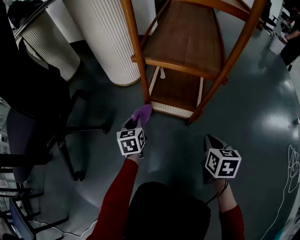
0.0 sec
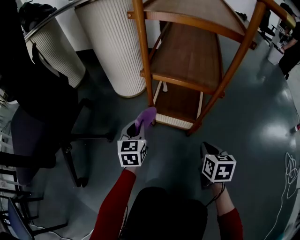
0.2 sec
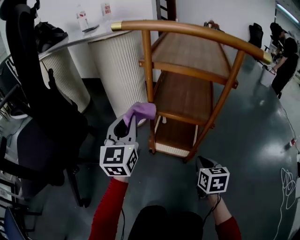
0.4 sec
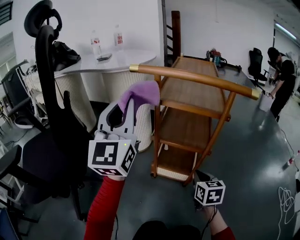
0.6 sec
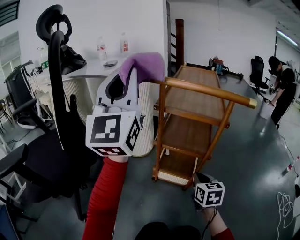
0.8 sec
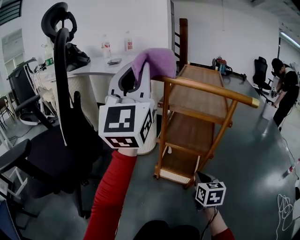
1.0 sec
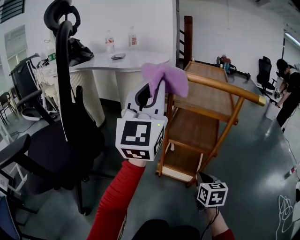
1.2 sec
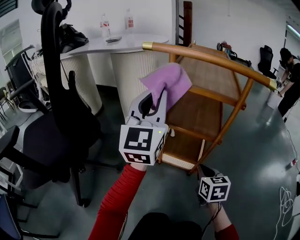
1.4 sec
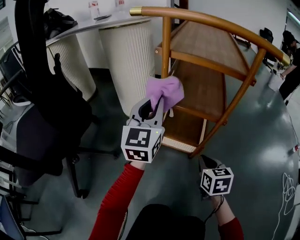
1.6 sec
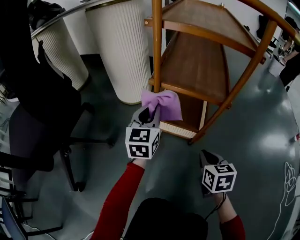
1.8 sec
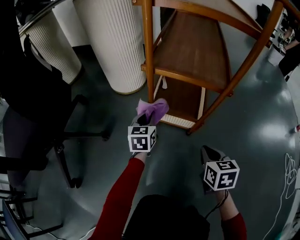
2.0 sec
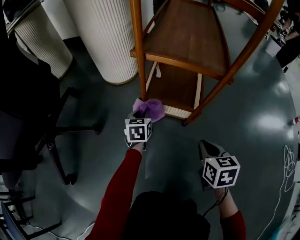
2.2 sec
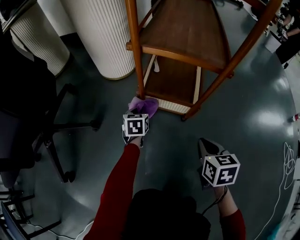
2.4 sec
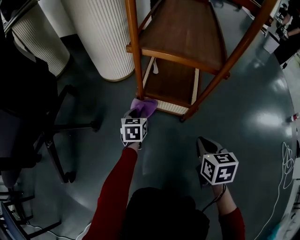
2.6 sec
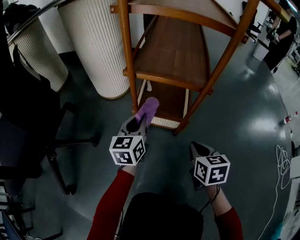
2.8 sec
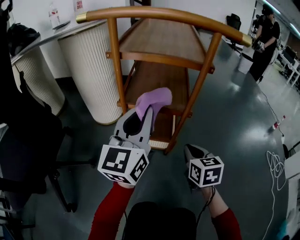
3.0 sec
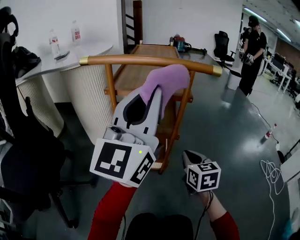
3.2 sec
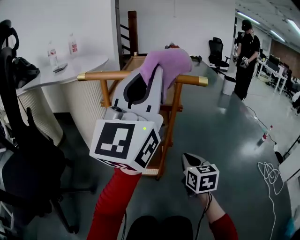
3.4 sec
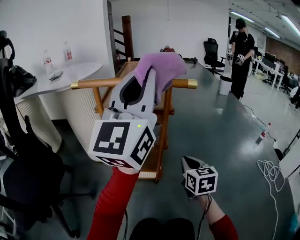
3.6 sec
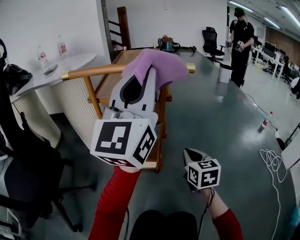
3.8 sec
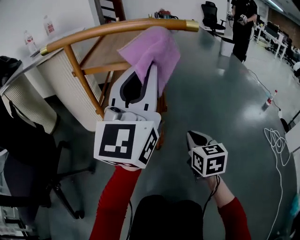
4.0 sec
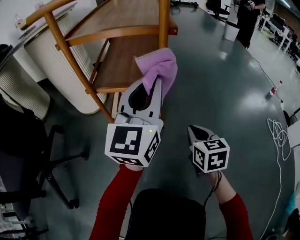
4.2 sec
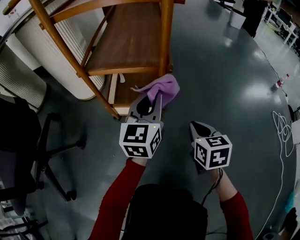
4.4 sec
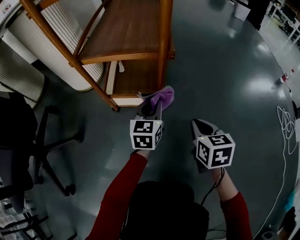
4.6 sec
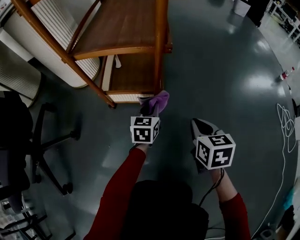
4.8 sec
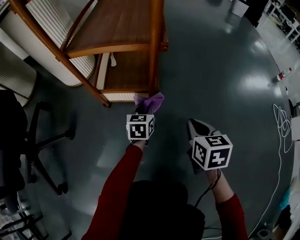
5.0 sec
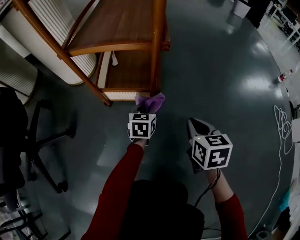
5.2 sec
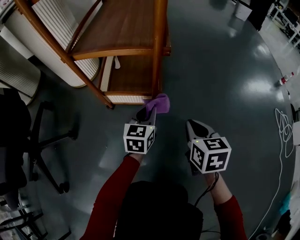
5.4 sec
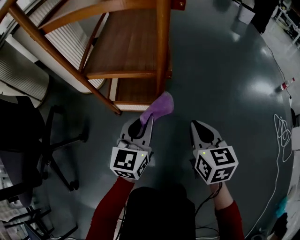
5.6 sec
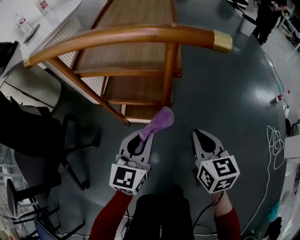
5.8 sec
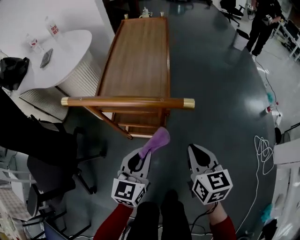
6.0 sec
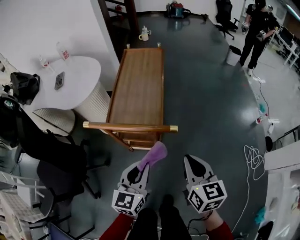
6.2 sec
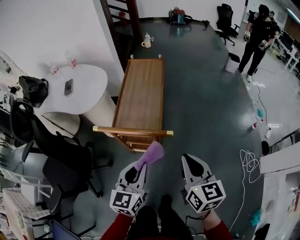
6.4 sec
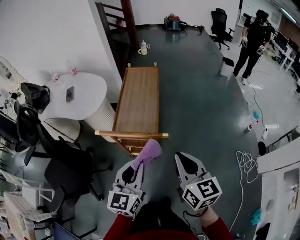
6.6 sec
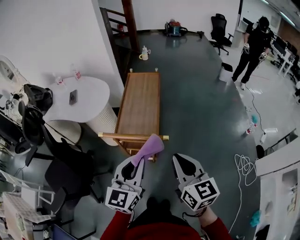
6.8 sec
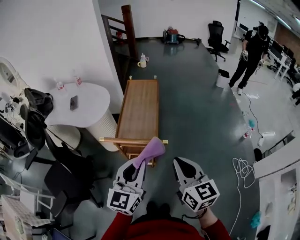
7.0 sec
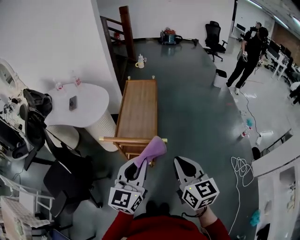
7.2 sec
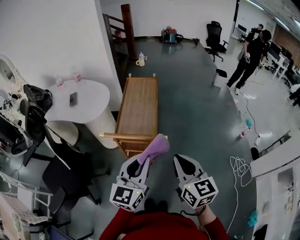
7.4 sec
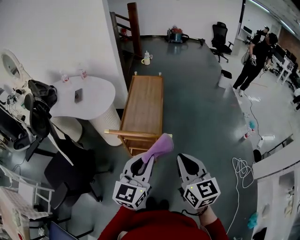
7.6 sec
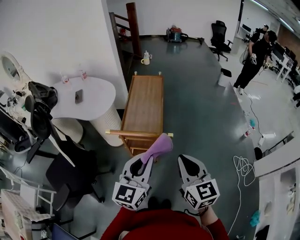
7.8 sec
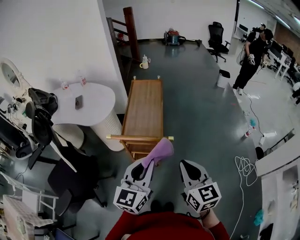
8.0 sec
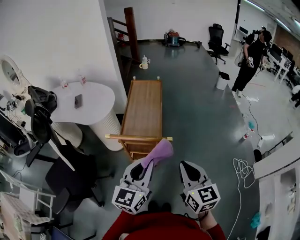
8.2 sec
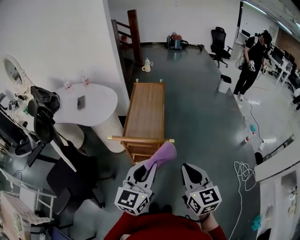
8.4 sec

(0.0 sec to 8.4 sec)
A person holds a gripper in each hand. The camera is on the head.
0.0 sec - 1.4 sec: The right gripper moves upward and to the left, about 15 cm, while the left gripper heads upward, covering roughly 50 cm, and angles its fingers upward, by roughly 50 degrees.
1.4 sec - 2.8 sec: The left gripper is displaced downward by approximately 35 cm, and tips its fingers downward by approximately 30 degrees. The right gripper is displaced downward by roughly 10 cm.
2.8 sec - 4.2 sec: The right gripper heads to the right, covering about 10 cm, and moves some 20 cm upward and comes back; the left gripper shifts about 30 cm upward and to the right, and changes its angle by approximately 30 degrees.
4.2 sec - 5.6 sec: The left gripper shifts approximately 20 cm downward, and swivels about 20 degrees; the right gripper goes downward and returns, roughly 10 cm each way.
5.6 sec - 7.0 sec: Both grippers move upward, roughly 60 cm. The right gripper changes its angle by about 20 degrees.
7.0 sec - 8.4 sec: The grippers move only a little.

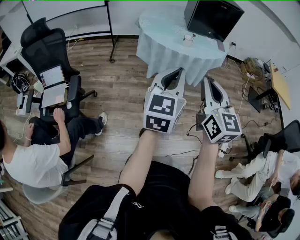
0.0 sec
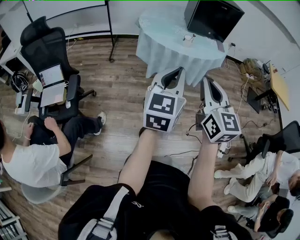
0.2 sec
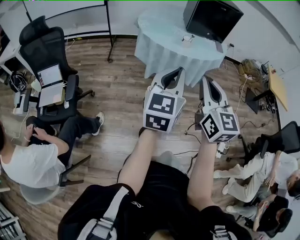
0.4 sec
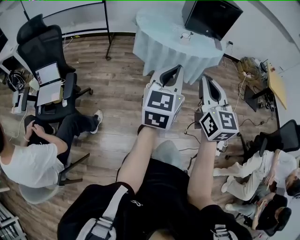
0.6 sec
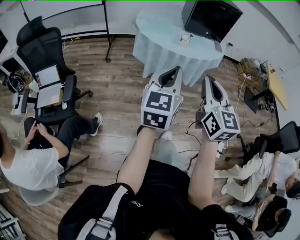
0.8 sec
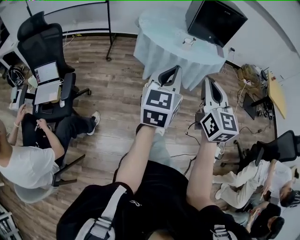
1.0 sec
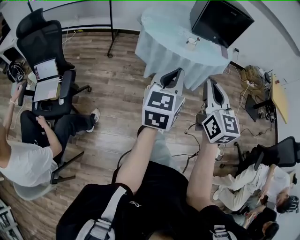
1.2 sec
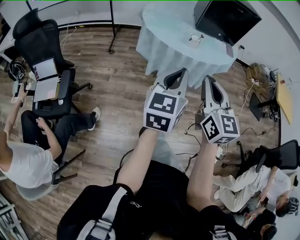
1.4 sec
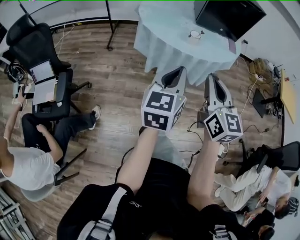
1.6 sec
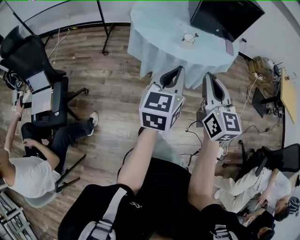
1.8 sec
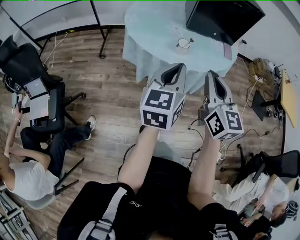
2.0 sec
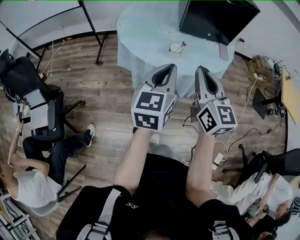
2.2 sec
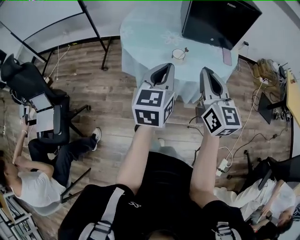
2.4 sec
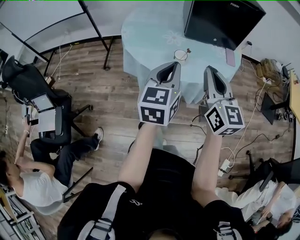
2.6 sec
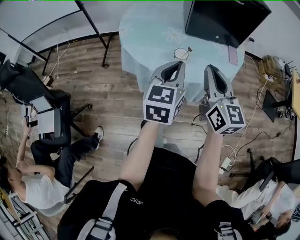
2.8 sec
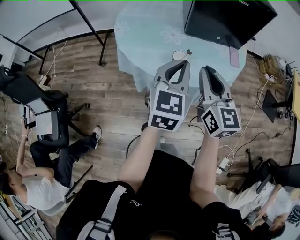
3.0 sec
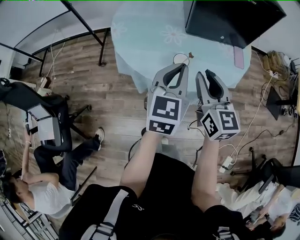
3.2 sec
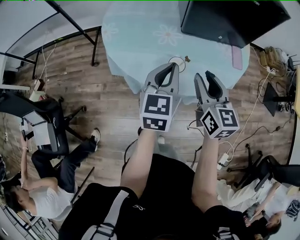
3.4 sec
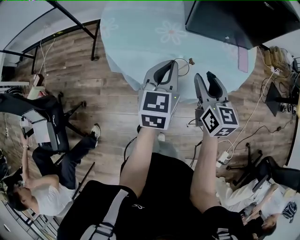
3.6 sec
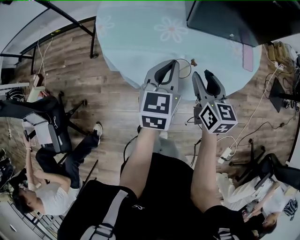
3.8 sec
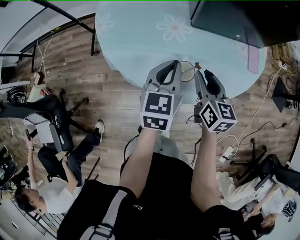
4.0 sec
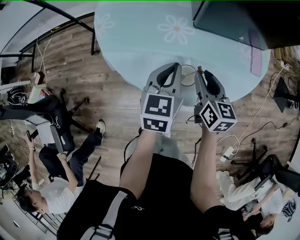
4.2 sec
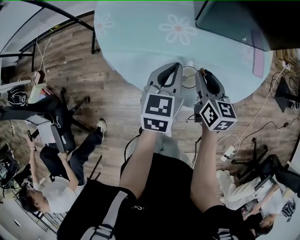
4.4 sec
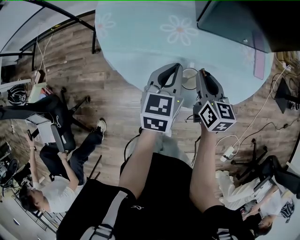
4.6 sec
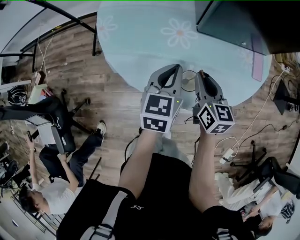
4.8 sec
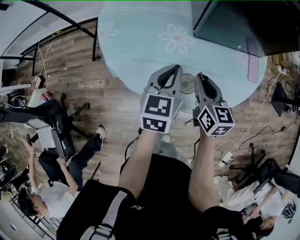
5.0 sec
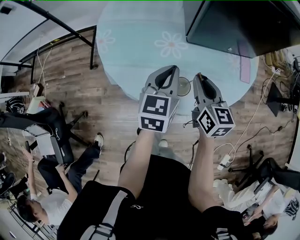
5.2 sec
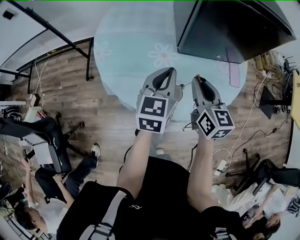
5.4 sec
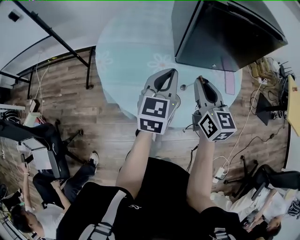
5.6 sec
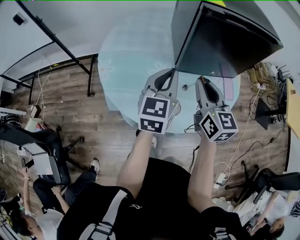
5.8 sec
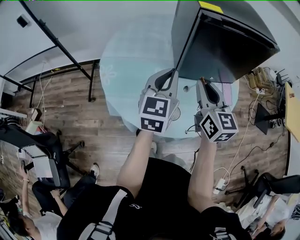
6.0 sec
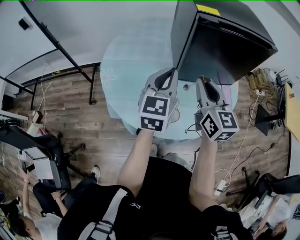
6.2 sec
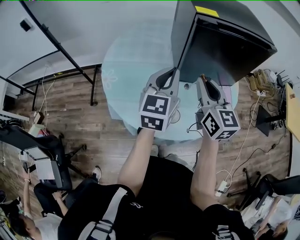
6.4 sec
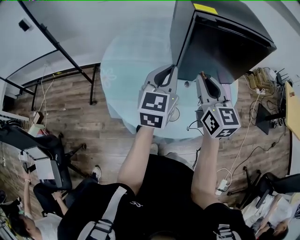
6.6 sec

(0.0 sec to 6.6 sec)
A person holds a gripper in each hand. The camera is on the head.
0.0 sec - 1.6 sec: Both grippers move forward, approximately 15 cm.
1.6 sec - 3.2 sec: Both grippers move forward, approximately 35 cm. The right gripper opens up.
3.2 sec - 5.0 sec: The two grippers go approximately 20 cm forward and downward.
5.0 sec - 6.6 sec: The grippers both shift upward by some 20 cm. The left gripper rotates approximately 20 degrees; the right gripper swivels about 20 degrees.

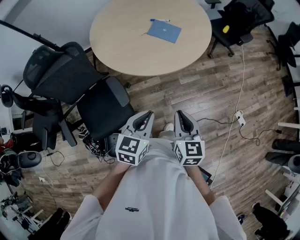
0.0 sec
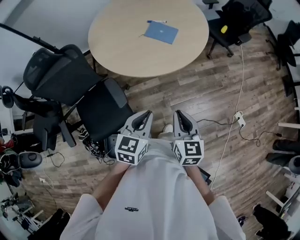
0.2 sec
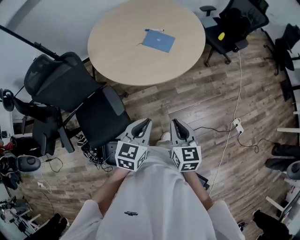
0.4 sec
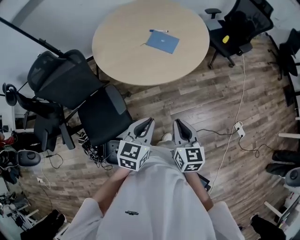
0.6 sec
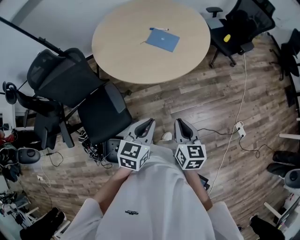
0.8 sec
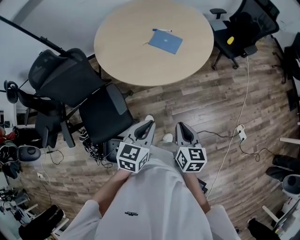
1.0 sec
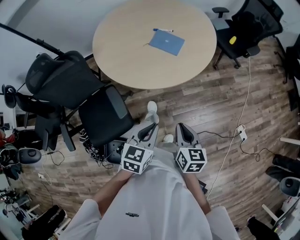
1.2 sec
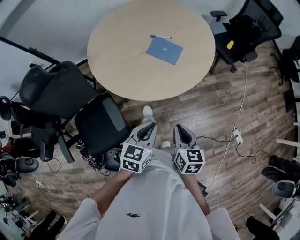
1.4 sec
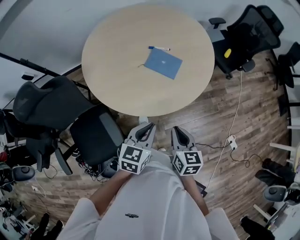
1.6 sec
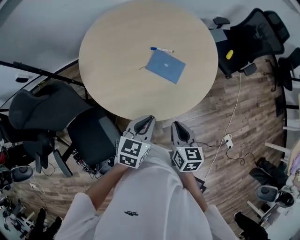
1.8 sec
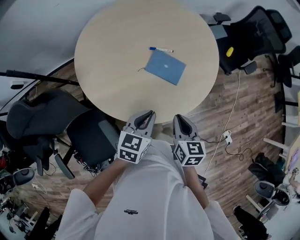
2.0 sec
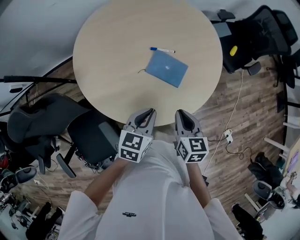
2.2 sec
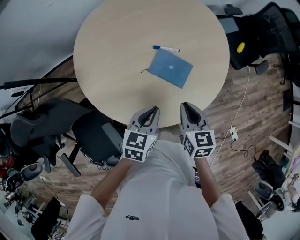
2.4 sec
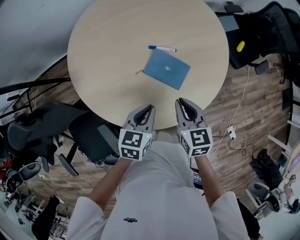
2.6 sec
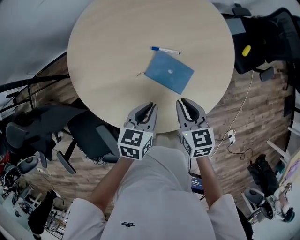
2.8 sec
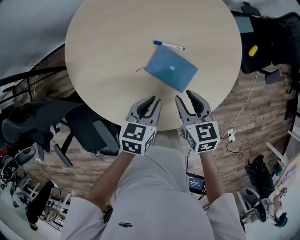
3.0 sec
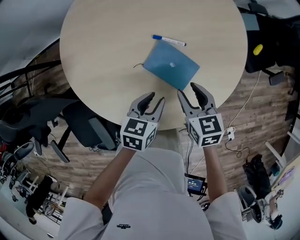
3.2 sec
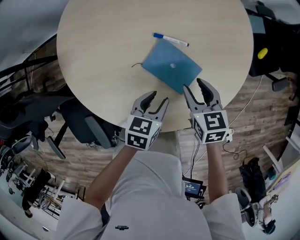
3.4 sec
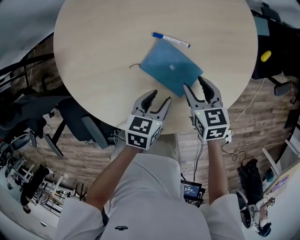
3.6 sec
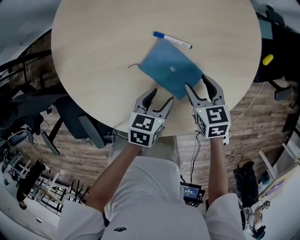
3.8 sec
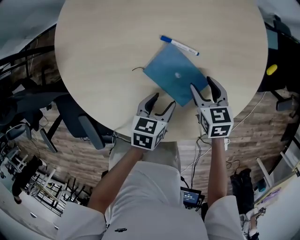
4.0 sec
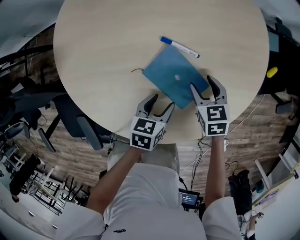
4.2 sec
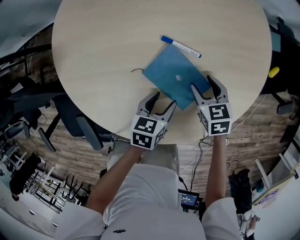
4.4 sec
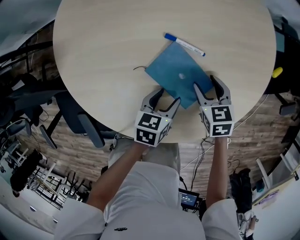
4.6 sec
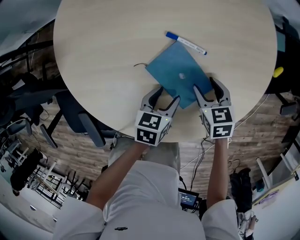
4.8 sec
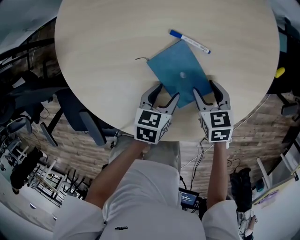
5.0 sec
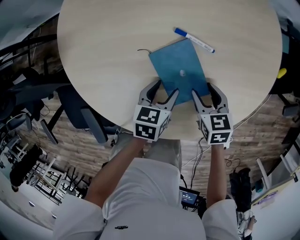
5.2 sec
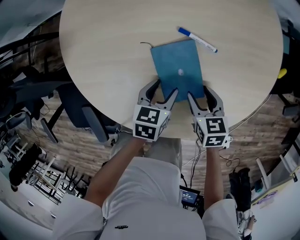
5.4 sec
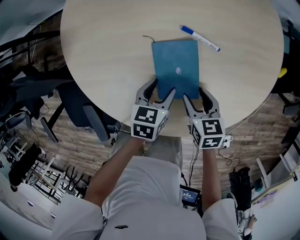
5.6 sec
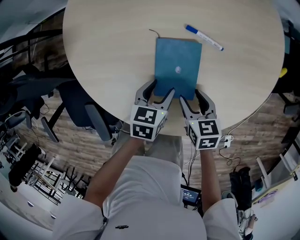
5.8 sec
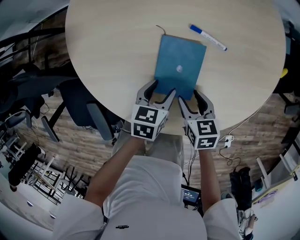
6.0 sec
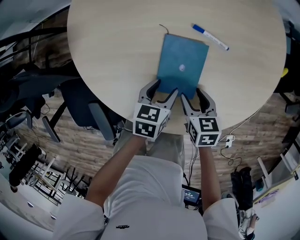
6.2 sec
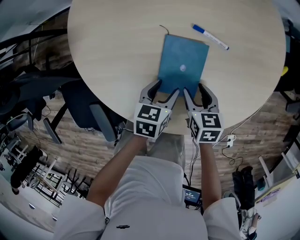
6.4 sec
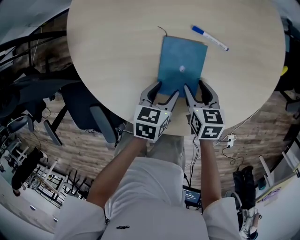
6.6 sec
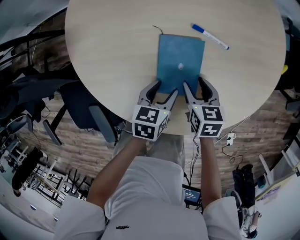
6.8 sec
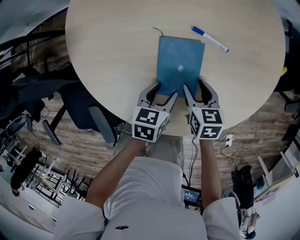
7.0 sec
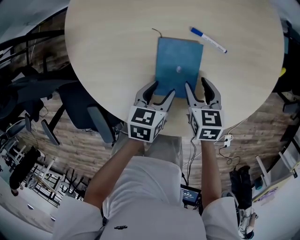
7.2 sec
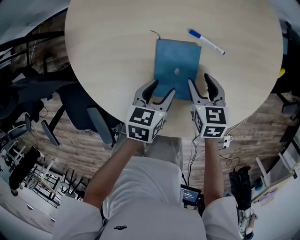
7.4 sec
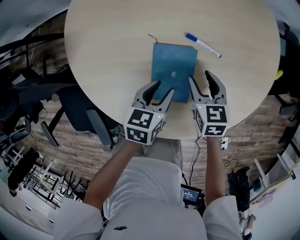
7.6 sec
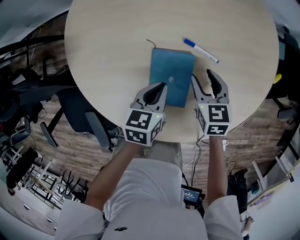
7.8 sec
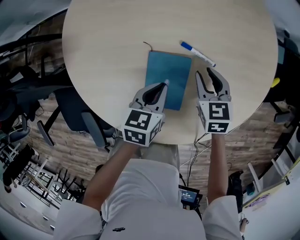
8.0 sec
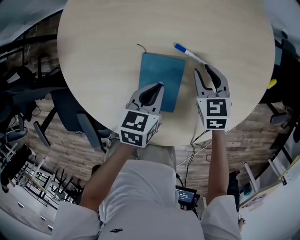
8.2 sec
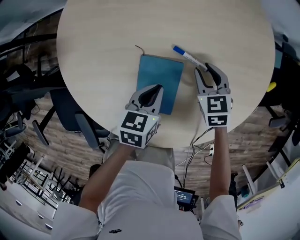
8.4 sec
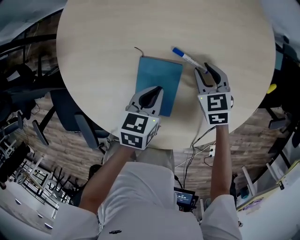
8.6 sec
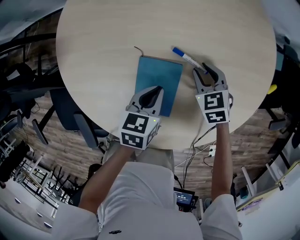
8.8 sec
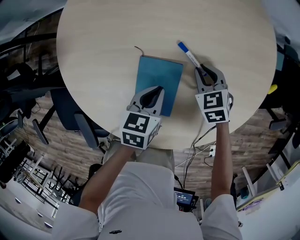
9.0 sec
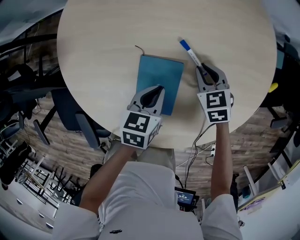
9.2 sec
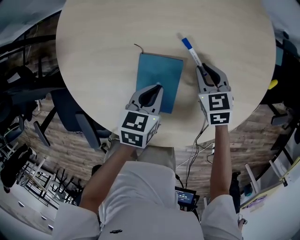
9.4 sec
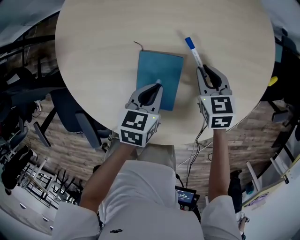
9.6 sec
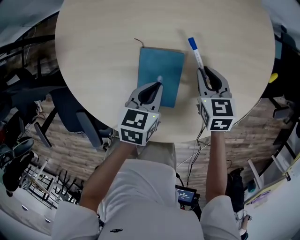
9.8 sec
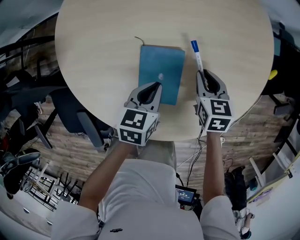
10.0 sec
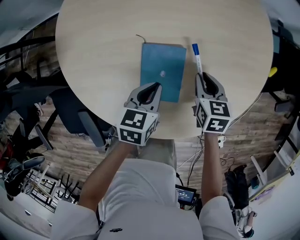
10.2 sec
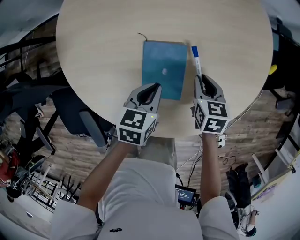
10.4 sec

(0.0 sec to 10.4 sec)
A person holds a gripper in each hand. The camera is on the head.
0.0 sec - 1.4 sec: The right gripper goes roughly 15 cm forward and downward. The left gripper heads forward, covering roughly 15 cm.
1.4 sec - 3.0 sec: The two grippers go roughly 40 cm forward. The right gripper swivels roughly 20 degrees, and opens.
3.0 sec - 4.4 sec: The left gripper shifts approximately 15 cm downward, and opens its fingers; the right gripper moves downward and forward, approximately 20 cm, rotates roughly 20 degrees, and opens up.
4.4 sec - 6.0 sec: The right gripper goes about 15 cm to the left and backward. Meanwhile the left gripper goes some 10 cm to the left.
6.0 sec - 7.4 sec: The right gripper shifts some 10 cm forward.
7.4 sec - 9.0 sec: The left gripper goes about 5 cm forward, and closes. The right gripper goes roughly 10 cm forward, turns by some 30 degrees, and closes.
9.0 sec - 10.4 sec: The left gripper moves backward, approximately 5 cm; the right gripper travels backward by roughly 10 cm, and turns by about 40 degrees.
